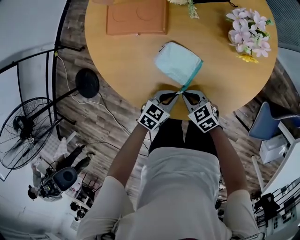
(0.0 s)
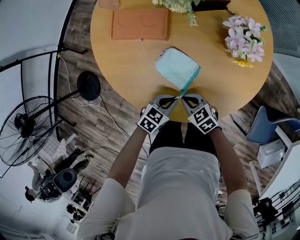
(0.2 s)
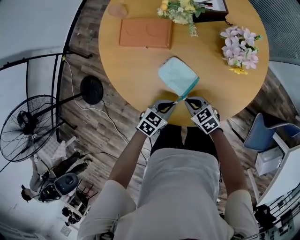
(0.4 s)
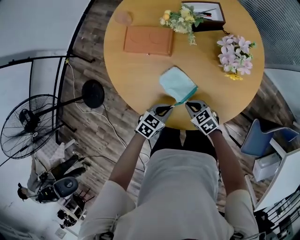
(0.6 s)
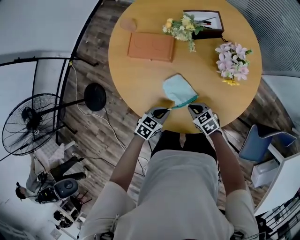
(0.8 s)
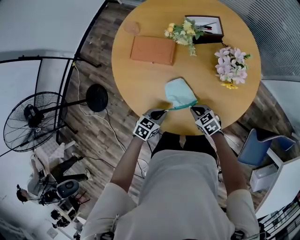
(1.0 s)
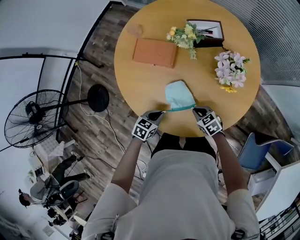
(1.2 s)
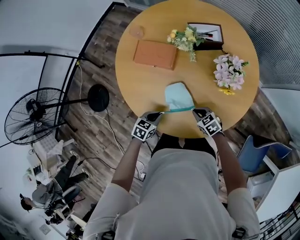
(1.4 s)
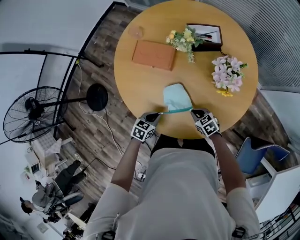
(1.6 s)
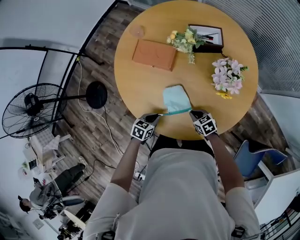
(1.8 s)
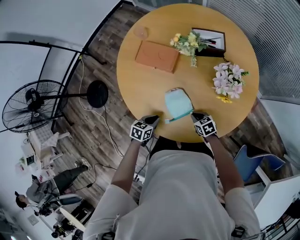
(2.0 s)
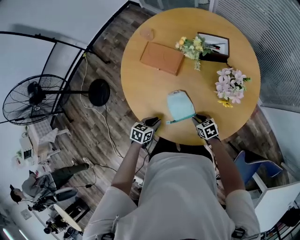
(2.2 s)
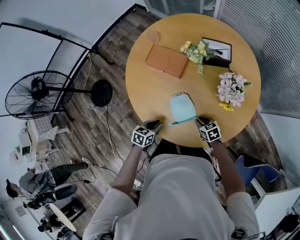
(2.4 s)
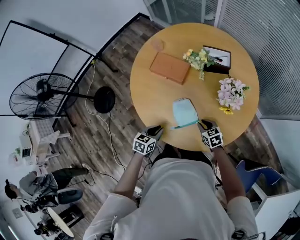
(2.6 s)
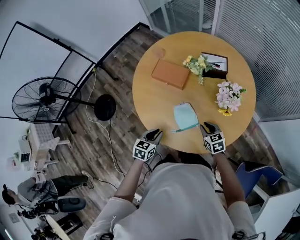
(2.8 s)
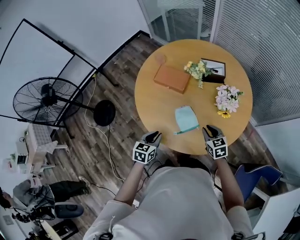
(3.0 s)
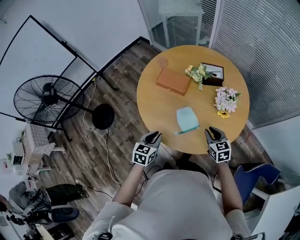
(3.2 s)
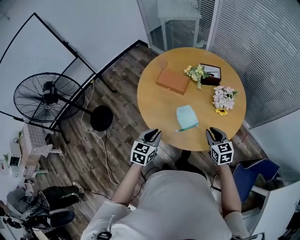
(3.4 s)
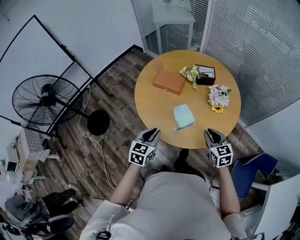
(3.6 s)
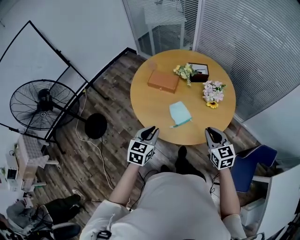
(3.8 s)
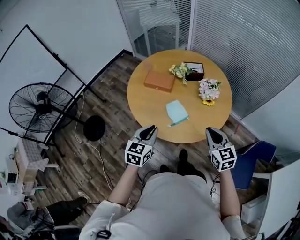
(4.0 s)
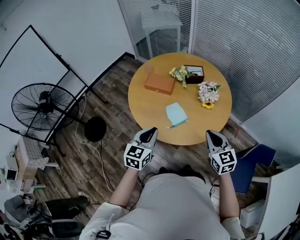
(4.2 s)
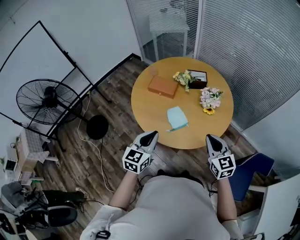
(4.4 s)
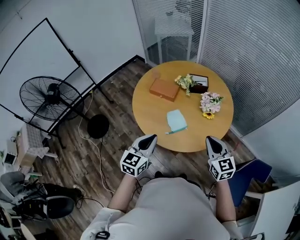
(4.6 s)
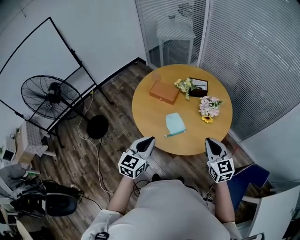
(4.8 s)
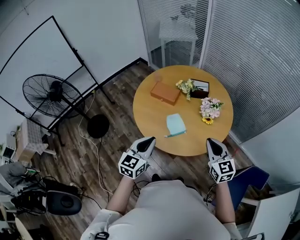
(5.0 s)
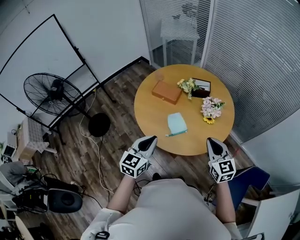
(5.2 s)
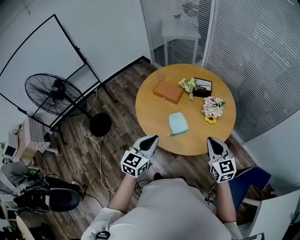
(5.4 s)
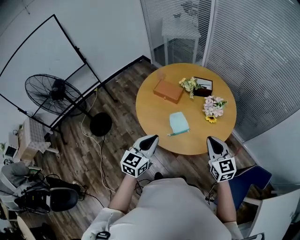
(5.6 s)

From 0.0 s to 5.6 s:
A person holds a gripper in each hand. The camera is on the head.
From 0.0 s to 1.4 s: The left gripper is displaced upward by approximately 10 cm; the right gripper changes place by roughly 10 cm.
From 1.4 s to 2.8 s: The left gripper moves upward and backward, some 10 cm, and changes its angle by some 20 degrees, while the right gripper heads upward, covering approximately 10 cm.
From 2.8 s to 4.2 s: Both grippers travel together upward and backward, roughly 30 cm. The right gripper turns by about 30 degrees, and closes. The left gripper swivels approximately 30 degrees.
From 4.2 s to 5.6 s: The left gripper shifts by about 5 cm.

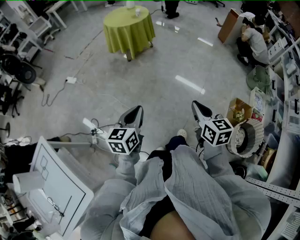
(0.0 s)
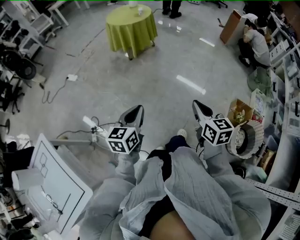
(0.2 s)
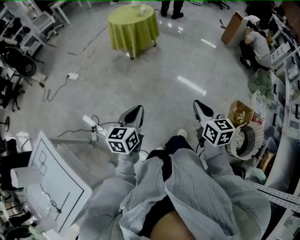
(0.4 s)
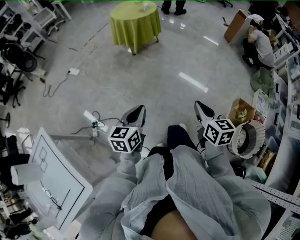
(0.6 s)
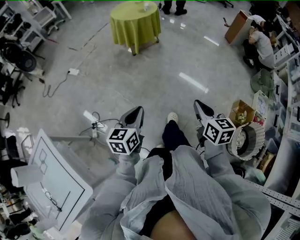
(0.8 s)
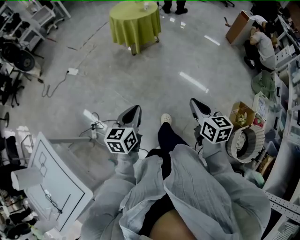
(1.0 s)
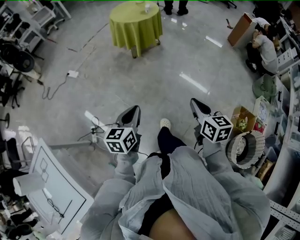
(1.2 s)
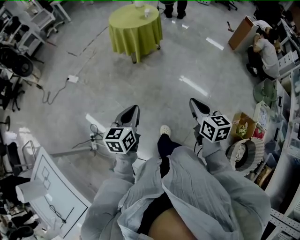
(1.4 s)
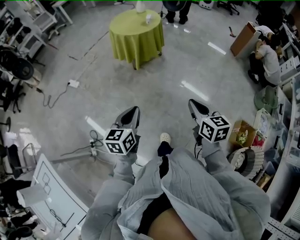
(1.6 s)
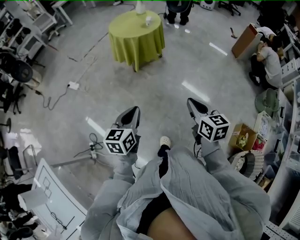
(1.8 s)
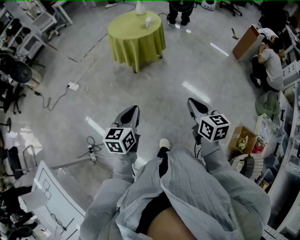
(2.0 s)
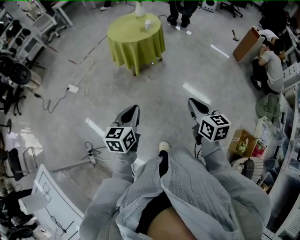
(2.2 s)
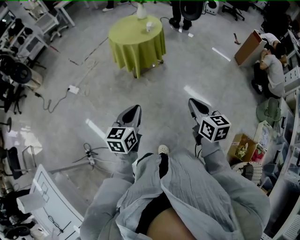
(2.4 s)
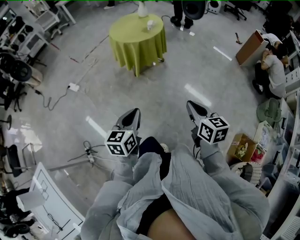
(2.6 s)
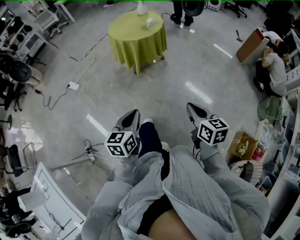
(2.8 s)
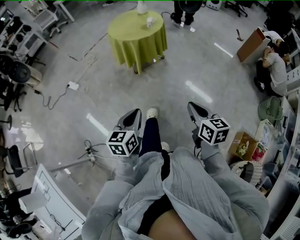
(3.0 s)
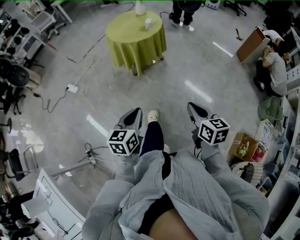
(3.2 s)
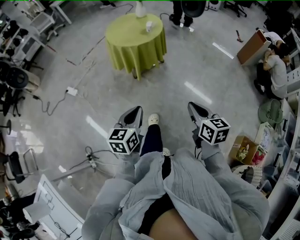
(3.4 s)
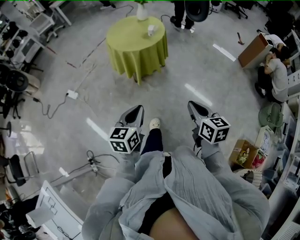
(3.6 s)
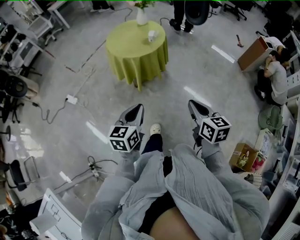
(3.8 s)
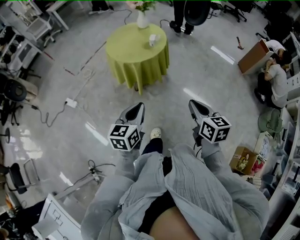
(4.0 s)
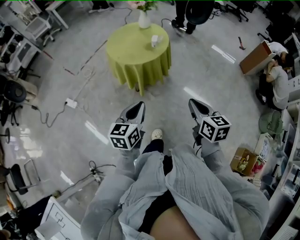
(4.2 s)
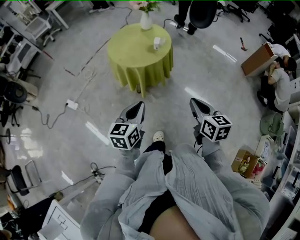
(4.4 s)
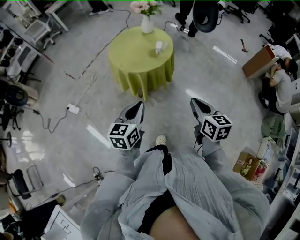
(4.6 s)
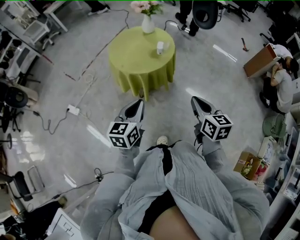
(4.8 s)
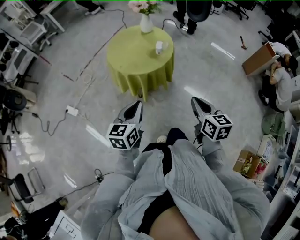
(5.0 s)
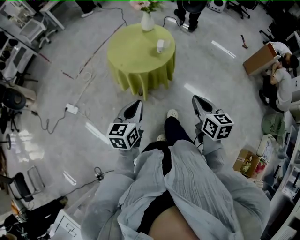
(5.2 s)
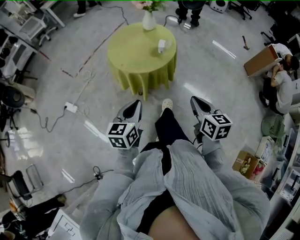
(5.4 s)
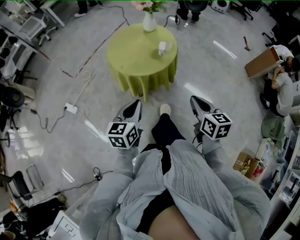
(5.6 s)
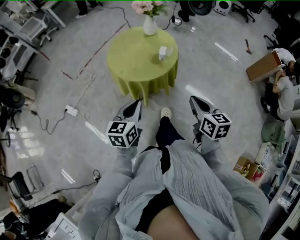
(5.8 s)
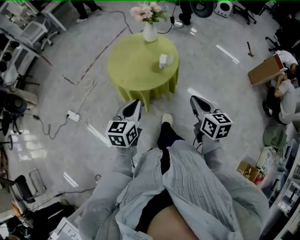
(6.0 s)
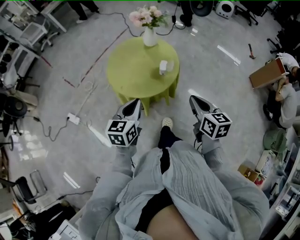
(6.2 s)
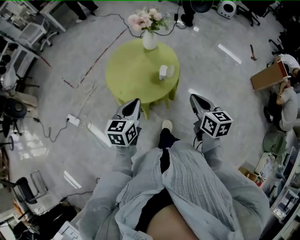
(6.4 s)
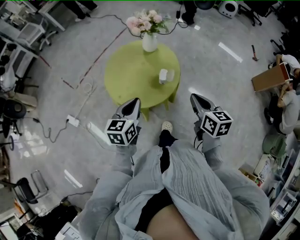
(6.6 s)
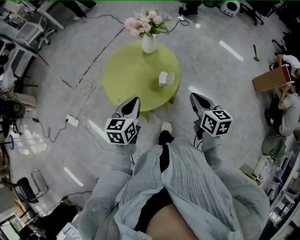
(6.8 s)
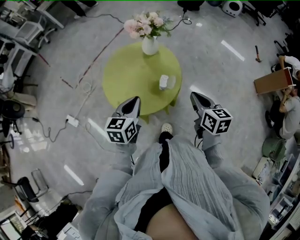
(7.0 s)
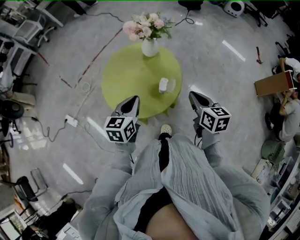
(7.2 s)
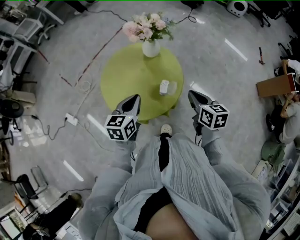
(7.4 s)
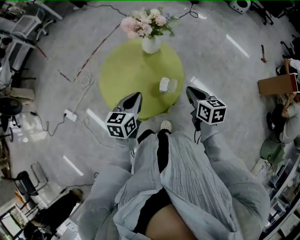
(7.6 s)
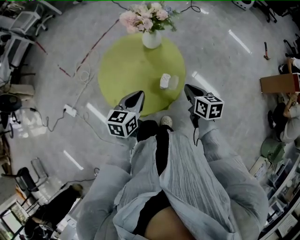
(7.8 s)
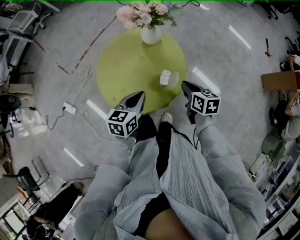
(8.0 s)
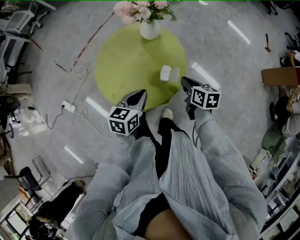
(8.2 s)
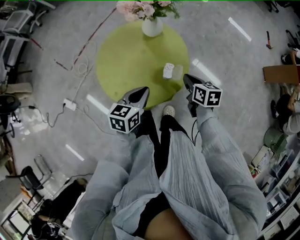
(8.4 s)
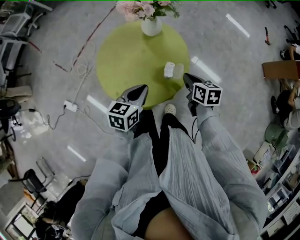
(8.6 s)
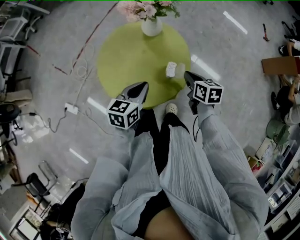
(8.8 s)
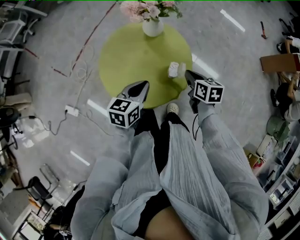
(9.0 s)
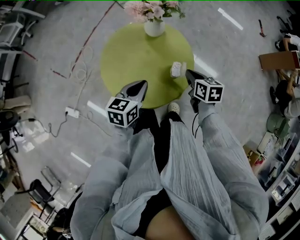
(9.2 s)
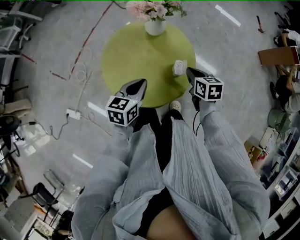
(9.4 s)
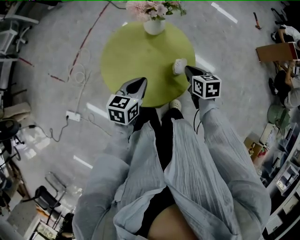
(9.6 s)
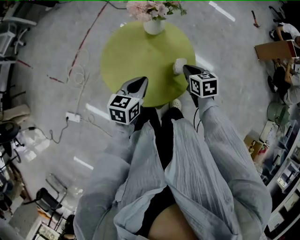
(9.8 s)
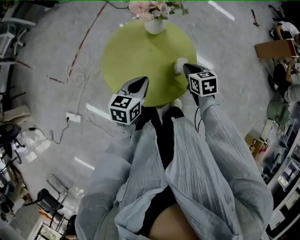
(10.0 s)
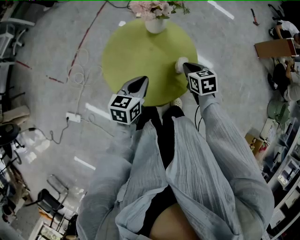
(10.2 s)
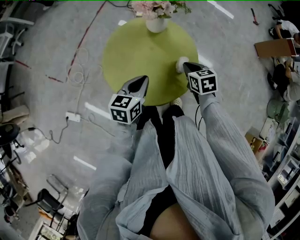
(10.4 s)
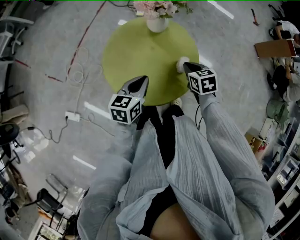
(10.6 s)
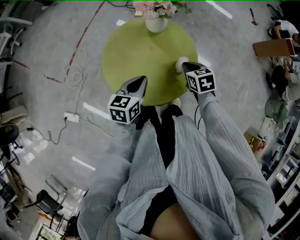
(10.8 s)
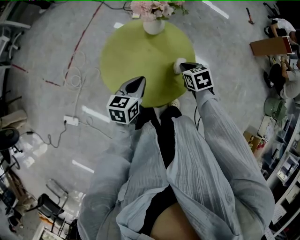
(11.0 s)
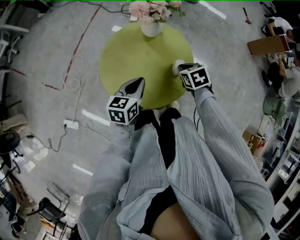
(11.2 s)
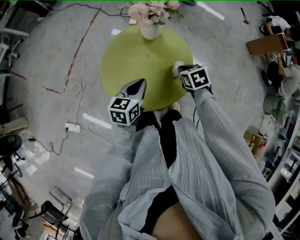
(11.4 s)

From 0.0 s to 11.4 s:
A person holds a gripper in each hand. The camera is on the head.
From 0.0 s to 1.4 s: The grippers both shift forward by roughly 15 cm.
From 1.4 s to 2.8 s: The two grippers go about 15 cm forward.
From 2.8 s to 4.2 s: The two grippers go about 25 cm forward.
From 4.2 s to 5.6 s: The right gripper is displaced forward by approximately 15 cm, while the left gripper travels forward and to the left by some 15 cm.
From 5.6 s to 7.2 s: Both grippers travel together forward, roughly 30 cm.
From 7.2 s to 8.6 s: The right gripper moves downward, some 10 cm, while the left gripper moves downward, some 5 cm.
From 8.6 s to 10.0 s: Both grippers travel together to the left, some 5 cm.
From 10.0 s to 11.4 s: The grippers move only a little.

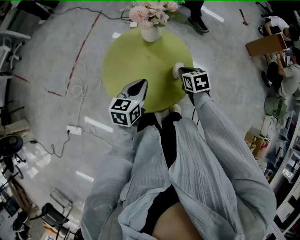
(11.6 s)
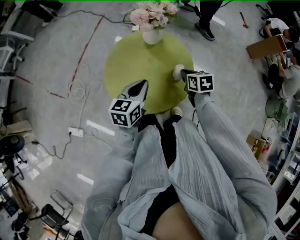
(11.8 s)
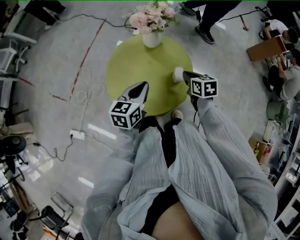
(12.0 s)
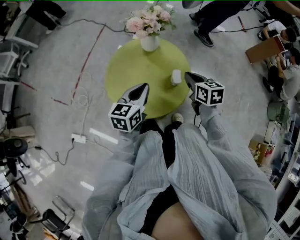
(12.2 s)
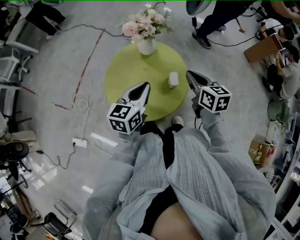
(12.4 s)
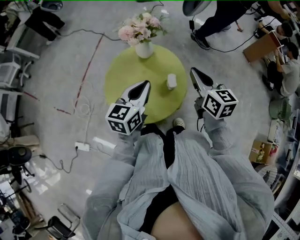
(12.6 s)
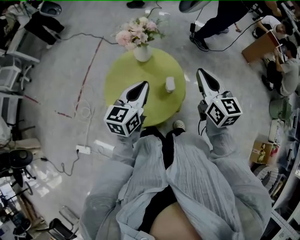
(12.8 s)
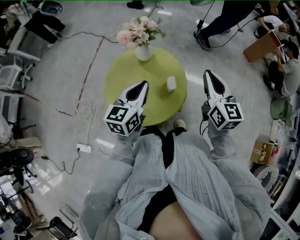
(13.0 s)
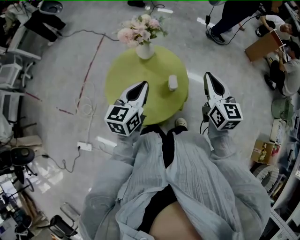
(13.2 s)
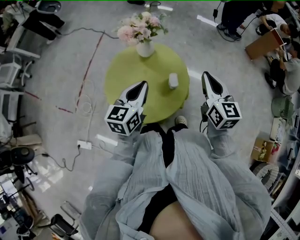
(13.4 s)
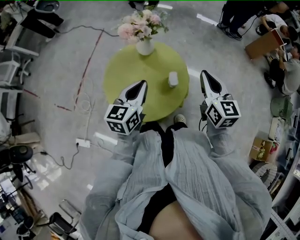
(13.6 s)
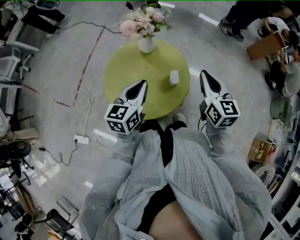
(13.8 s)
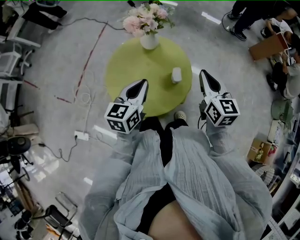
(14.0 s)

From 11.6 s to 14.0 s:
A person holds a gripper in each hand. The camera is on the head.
From 11.6 s to 12.8 s: The left gripper goes roughly 15 cm upward and to the right, while the right gripper is displaced upward by about 25 cm, and tips its fingers upward by roughly 50 degrees.
From 12.8 s to 14.0 s: The right gripper moves downward, about 5 cm; the left gripper changes place by some 5 cm.

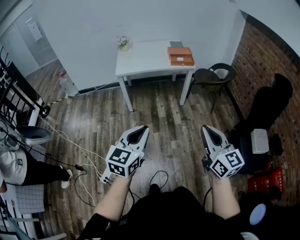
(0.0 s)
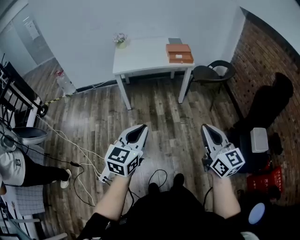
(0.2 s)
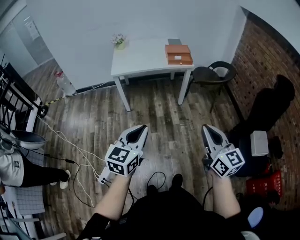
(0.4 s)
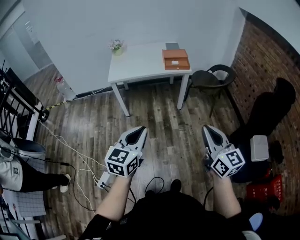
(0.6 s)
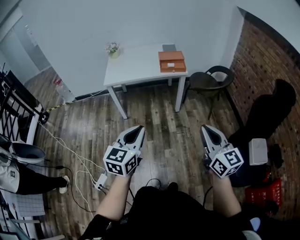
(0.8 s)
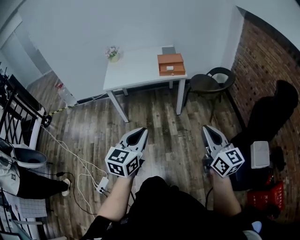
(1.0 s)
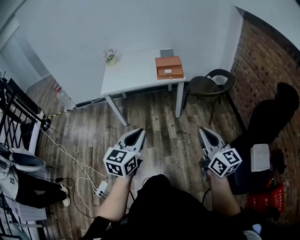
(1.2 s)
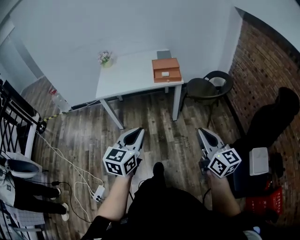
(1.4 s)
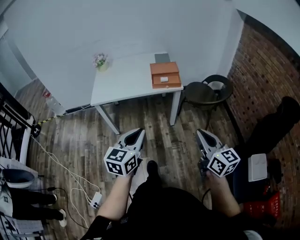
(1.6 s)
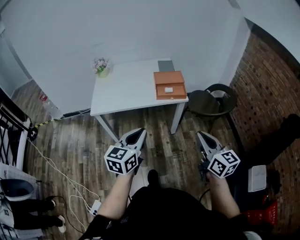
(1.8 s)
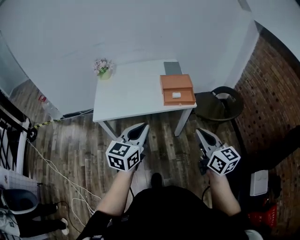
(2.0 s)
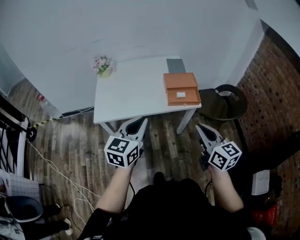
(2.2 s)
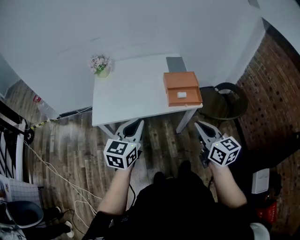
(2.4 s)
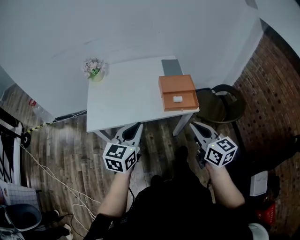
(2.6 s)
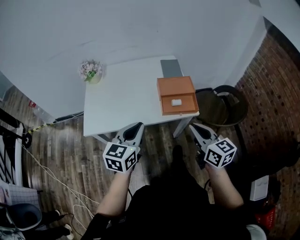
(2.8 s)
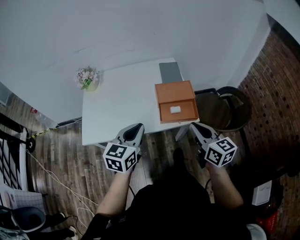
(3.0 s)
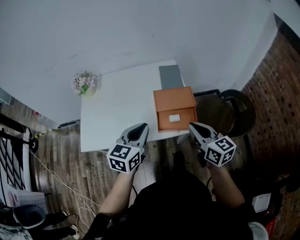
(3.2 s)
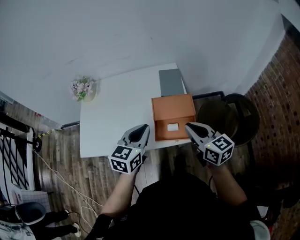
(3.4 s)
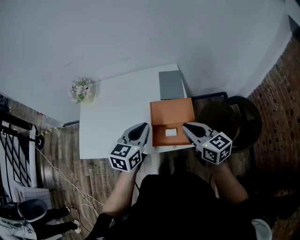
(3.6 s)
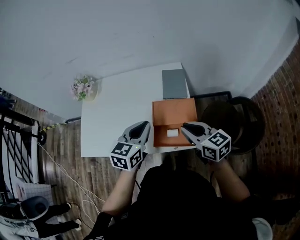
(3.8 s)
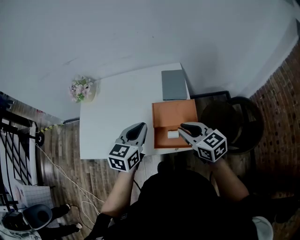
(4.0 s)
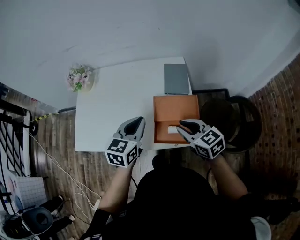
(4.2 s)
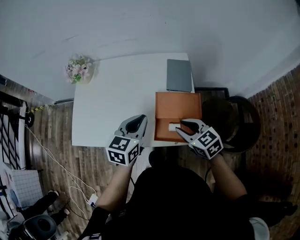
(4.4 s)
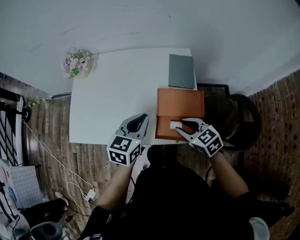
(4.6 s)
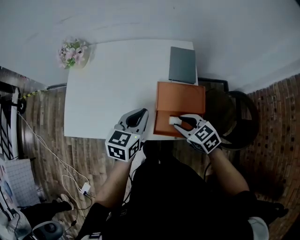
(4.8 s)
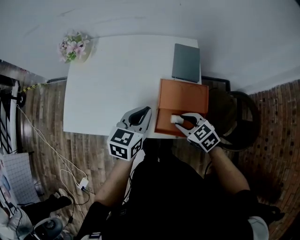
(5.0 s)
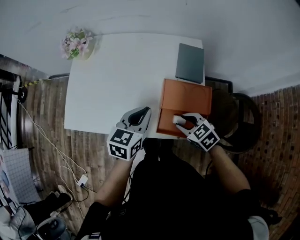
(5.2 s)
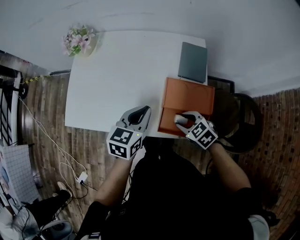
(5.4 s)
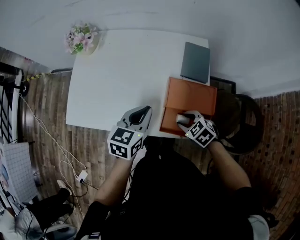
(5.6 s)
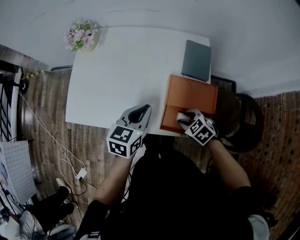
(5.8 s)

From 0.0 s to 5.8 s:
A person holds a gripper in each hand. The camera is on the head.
From 0.0 s to 1.4 s: Both grippers travel together forward and to the right, about 30 cm.
From 1.4 s to 2.8 s: Both grippers are carried forward, approximately 50 cm.
From 2.8 s to 4.4 s: The left gripper moves forward and to the right, about 25 cm. The right gripper is displaced forward and downward by approximately 30 cm, turns by roughly 40 degrees, and opens up.
From 4.4 s to 5.8 s: The left gripper shifts about 5 cm downward; the right gripper goes roughly 15 cm downward, and turns by approximately 30 degrees.
